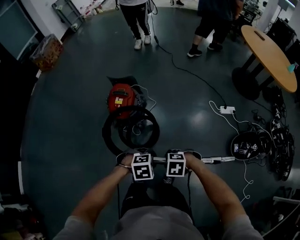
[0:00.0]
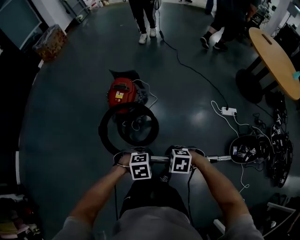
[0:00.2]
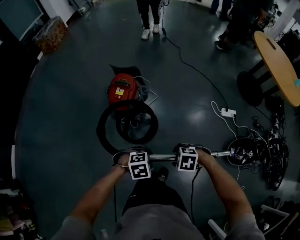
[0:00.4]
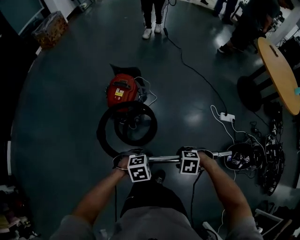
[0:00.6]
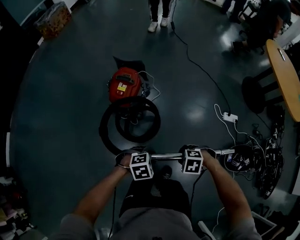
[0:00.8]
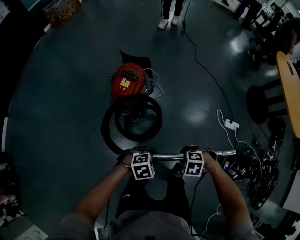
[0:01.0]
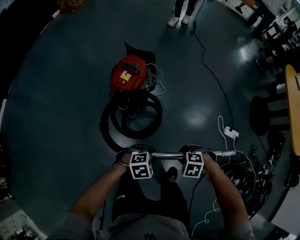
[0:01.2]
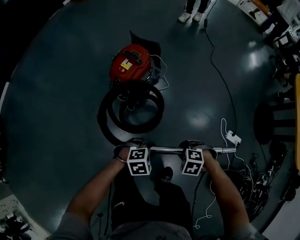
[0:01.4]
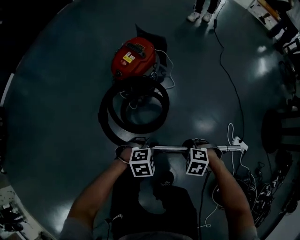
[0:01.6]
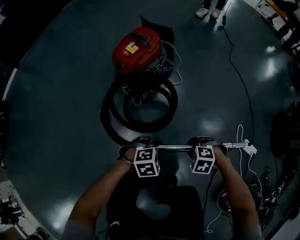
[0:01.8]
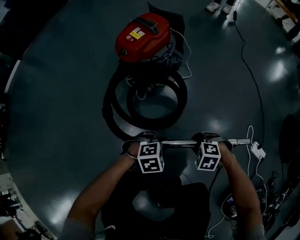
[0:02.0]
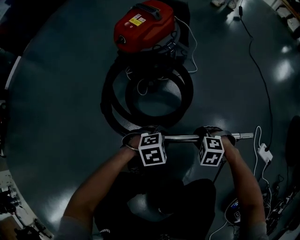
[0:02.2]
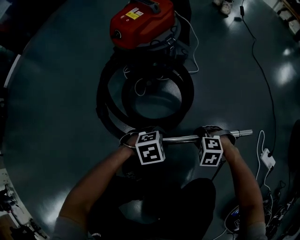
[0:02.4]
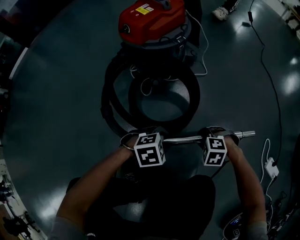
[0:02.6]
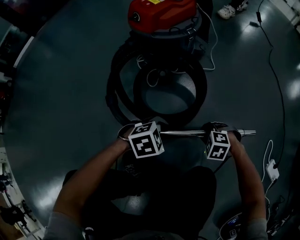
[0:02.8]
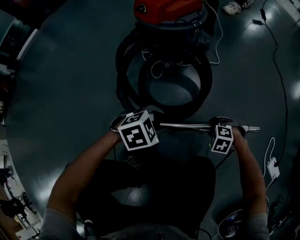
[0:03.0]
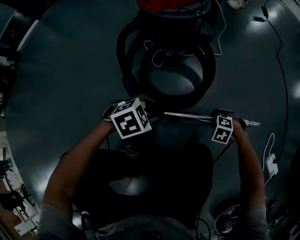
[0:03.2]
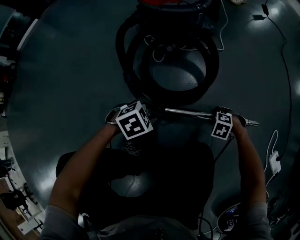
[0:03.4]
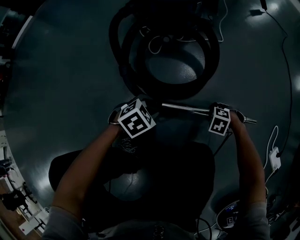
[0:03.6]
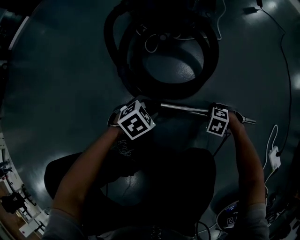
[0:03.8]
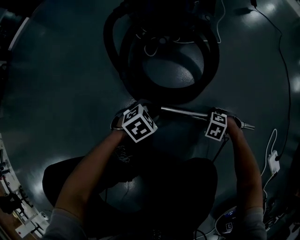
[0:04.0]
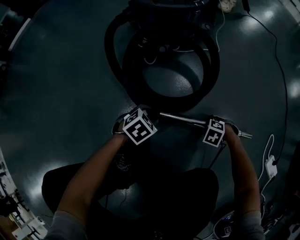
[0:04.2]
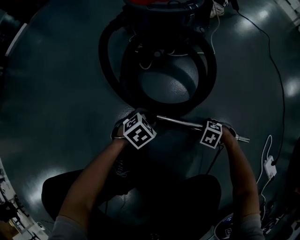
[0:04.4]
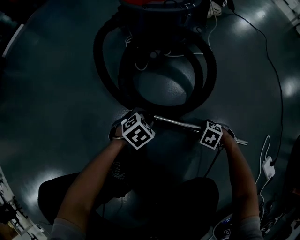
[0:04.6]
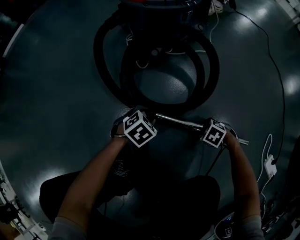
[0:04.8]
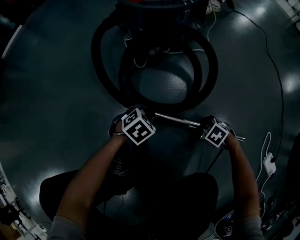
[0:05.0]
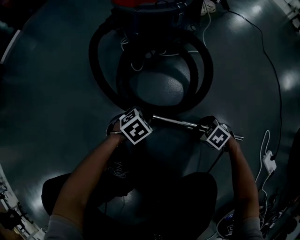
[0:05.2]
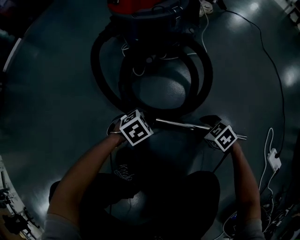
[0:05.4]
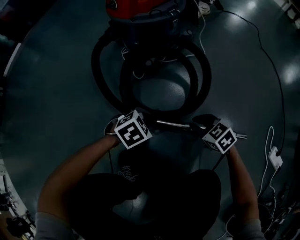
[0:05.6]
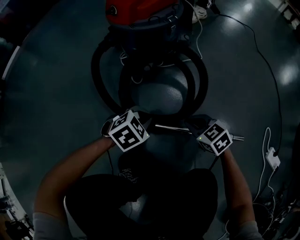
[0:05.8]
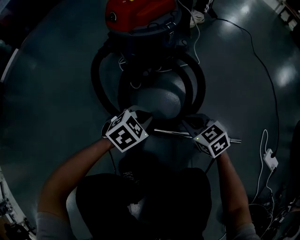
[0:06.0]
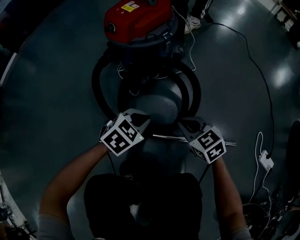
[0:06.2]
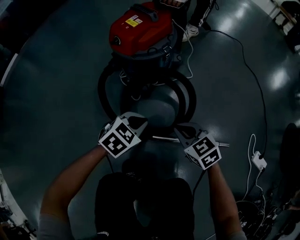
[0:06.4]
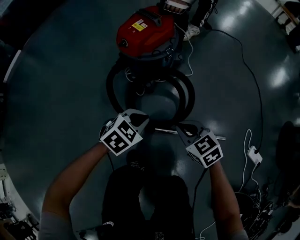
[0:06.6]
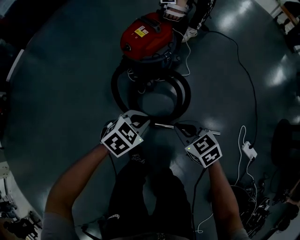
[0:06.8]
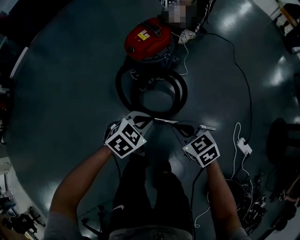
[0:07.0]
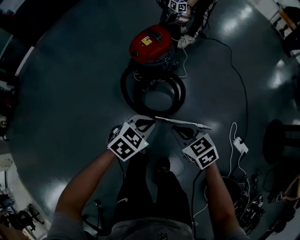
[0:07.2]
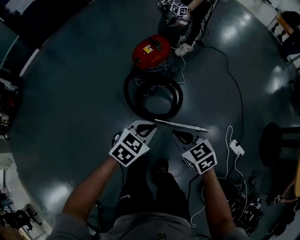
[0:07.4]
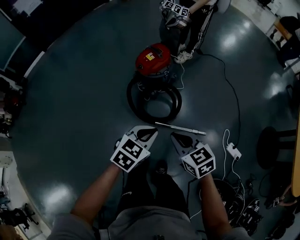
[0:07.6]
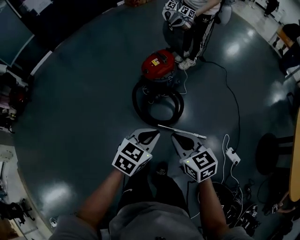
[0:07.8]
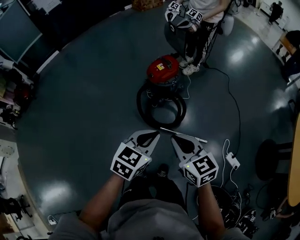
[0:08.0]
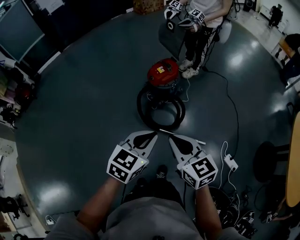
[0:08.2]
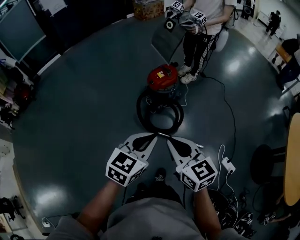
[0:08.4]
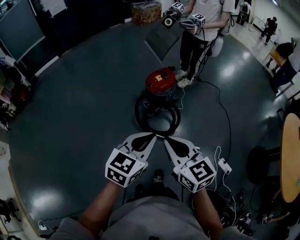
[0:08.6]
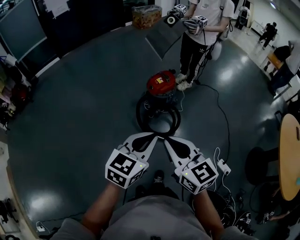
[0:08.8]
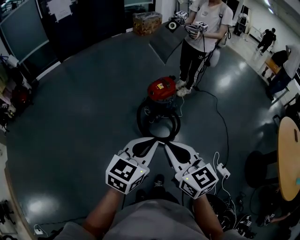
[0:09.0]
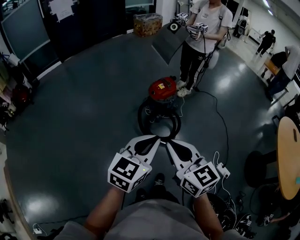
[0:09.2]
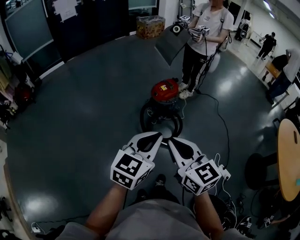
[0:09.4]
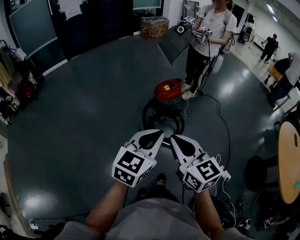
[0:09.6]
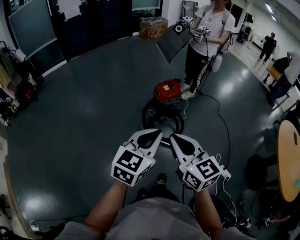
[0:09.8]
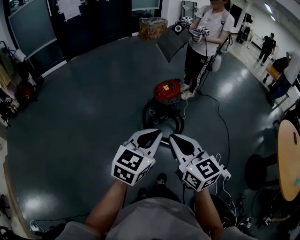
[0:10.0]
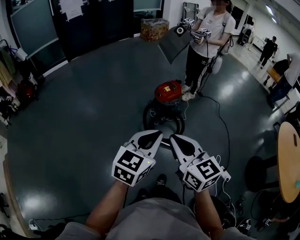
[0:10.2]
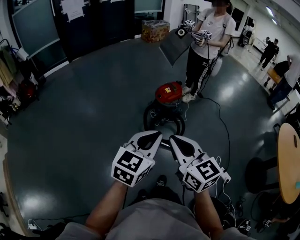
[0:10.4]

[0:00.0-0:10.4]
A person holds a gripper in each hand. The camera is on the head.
0:00.0 to 0:01.4: The right gripper ends up some 25 cm from where it was, and turns by about 20 degrees. Meanwhile the left gripper heads downward, covering about 15 cm, and turns by approximately 30 degrees.
0:01.4 to 0:03.0: The two grippers go approximately 35 cm downward. The left gripper turns by about 30 degrees, while the right gripper rotates about 20 degrees.
0:03.0 to 0:04.4: Both grippers move downward, about 15 cm. The left gripper changes its angle by roughly 20 degrees.
0:04.4 to 0:06.0: The two grippers go some 15 cm upward. The left gripper closes its fingers, while the right gripper angles its fingers upward, by about 40 degrees.
0:06.0 to 0:07.4: Both grippers move upward, approximately 50 cm.
0:07.4 to 0:09.0: Both grippers travel together upward and backward, some 40 cm. The right gripper changes its angle by approximately 30 degrees. The left gripper turns by roughly 40 degrees.
0:09.0 to 0:10.4: The right gripper ends up approximately 5 cm from where it was. The left gripper changes place by about 5 cm.

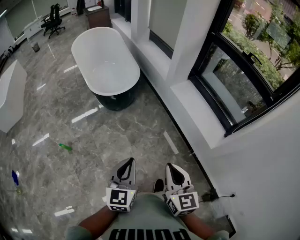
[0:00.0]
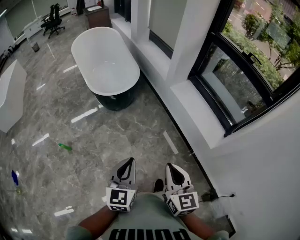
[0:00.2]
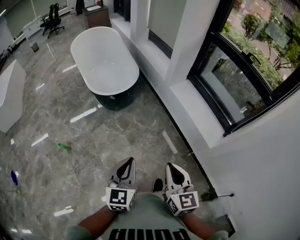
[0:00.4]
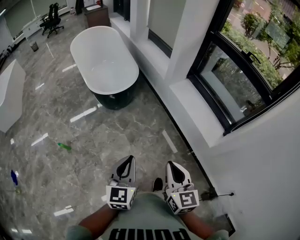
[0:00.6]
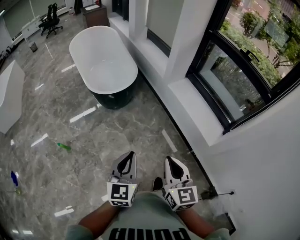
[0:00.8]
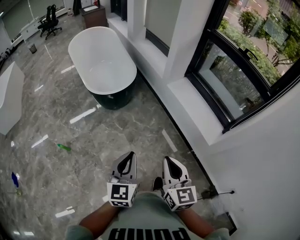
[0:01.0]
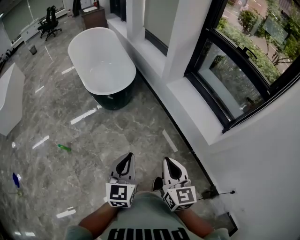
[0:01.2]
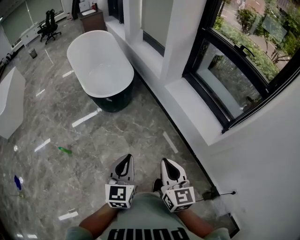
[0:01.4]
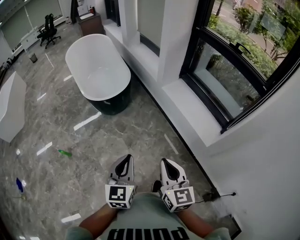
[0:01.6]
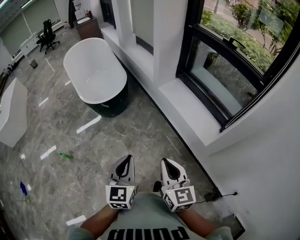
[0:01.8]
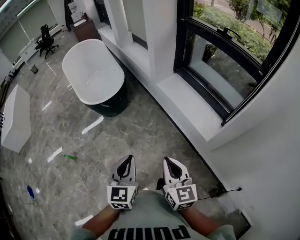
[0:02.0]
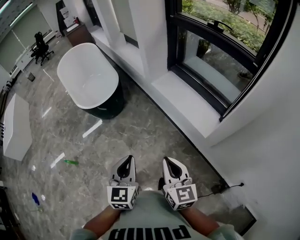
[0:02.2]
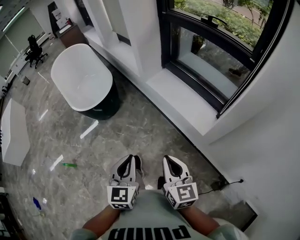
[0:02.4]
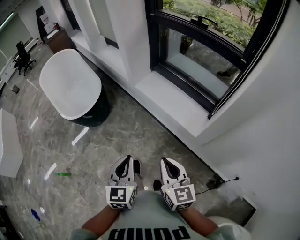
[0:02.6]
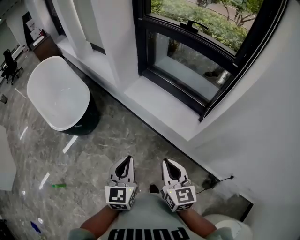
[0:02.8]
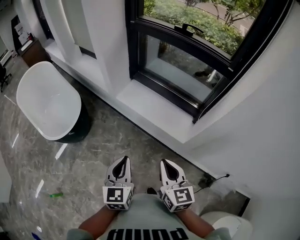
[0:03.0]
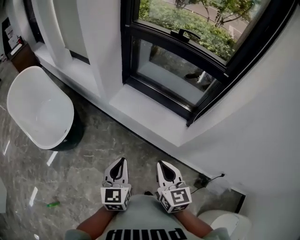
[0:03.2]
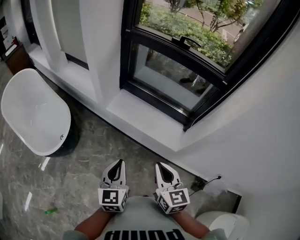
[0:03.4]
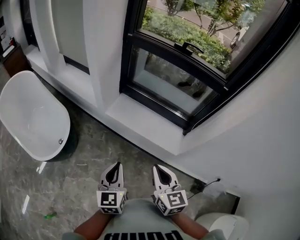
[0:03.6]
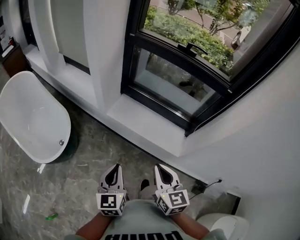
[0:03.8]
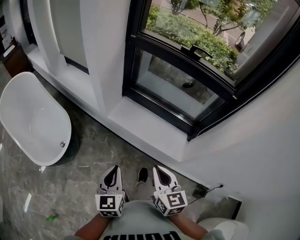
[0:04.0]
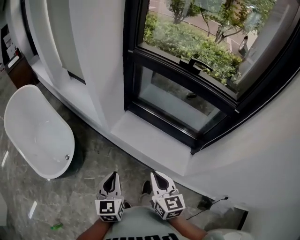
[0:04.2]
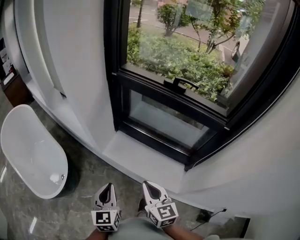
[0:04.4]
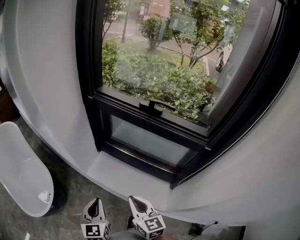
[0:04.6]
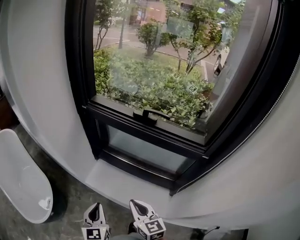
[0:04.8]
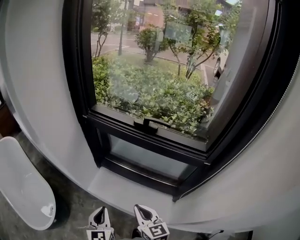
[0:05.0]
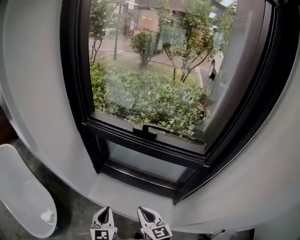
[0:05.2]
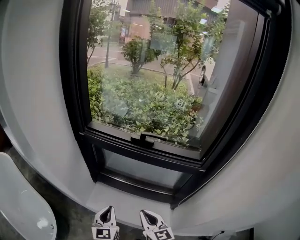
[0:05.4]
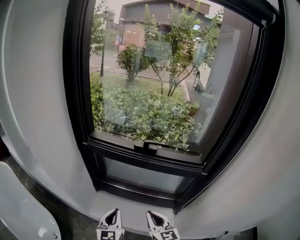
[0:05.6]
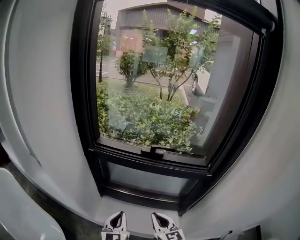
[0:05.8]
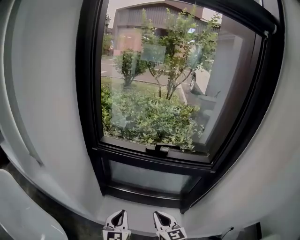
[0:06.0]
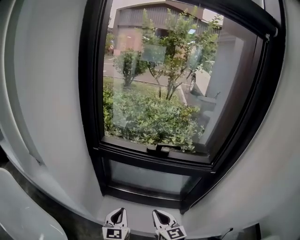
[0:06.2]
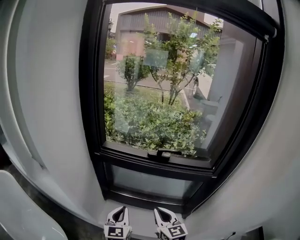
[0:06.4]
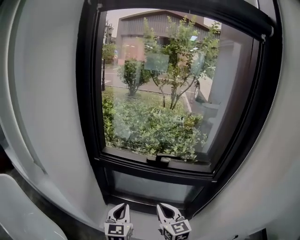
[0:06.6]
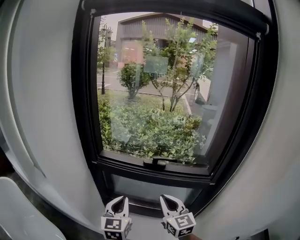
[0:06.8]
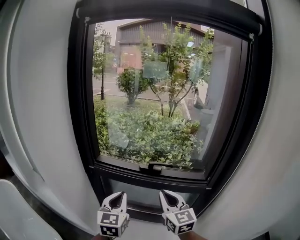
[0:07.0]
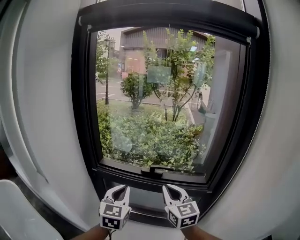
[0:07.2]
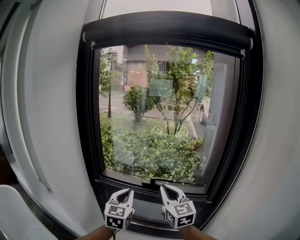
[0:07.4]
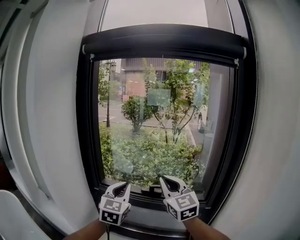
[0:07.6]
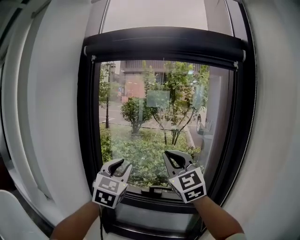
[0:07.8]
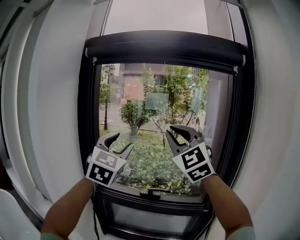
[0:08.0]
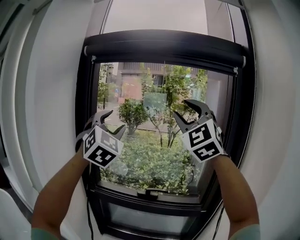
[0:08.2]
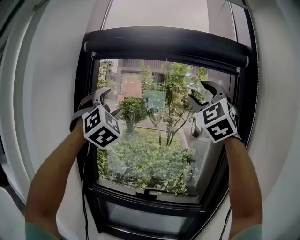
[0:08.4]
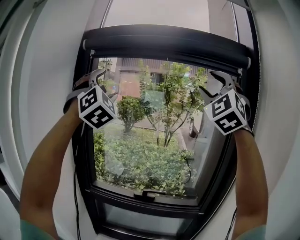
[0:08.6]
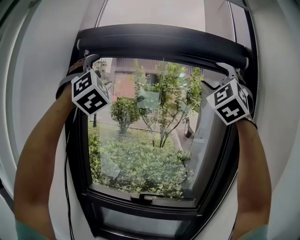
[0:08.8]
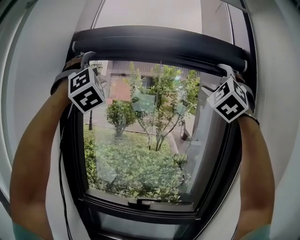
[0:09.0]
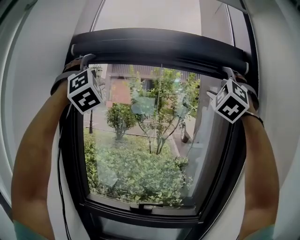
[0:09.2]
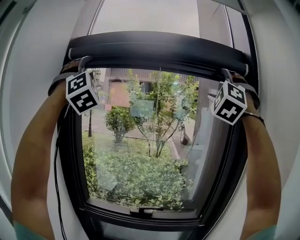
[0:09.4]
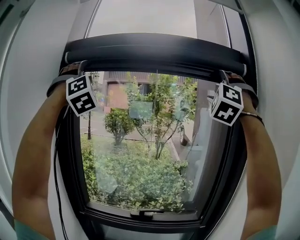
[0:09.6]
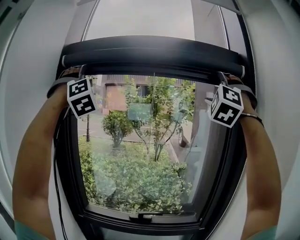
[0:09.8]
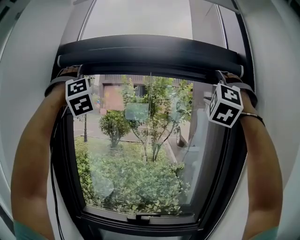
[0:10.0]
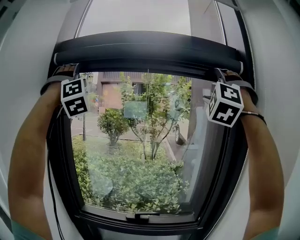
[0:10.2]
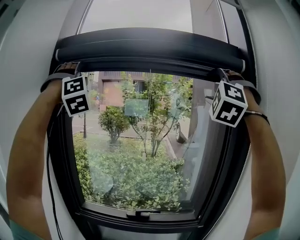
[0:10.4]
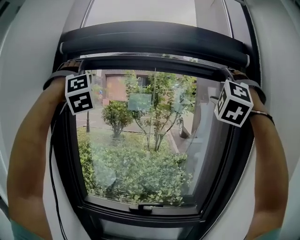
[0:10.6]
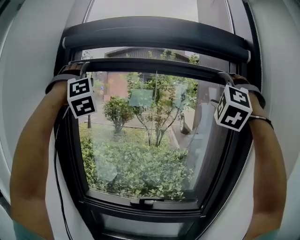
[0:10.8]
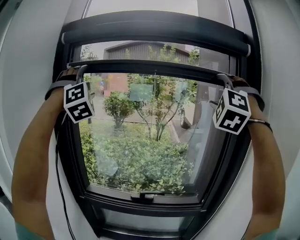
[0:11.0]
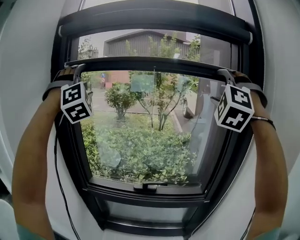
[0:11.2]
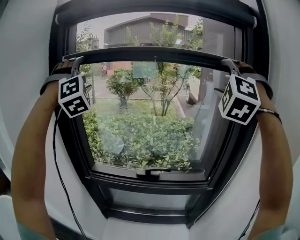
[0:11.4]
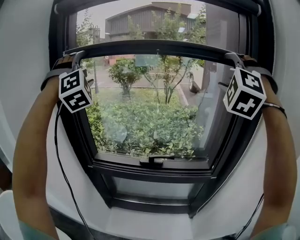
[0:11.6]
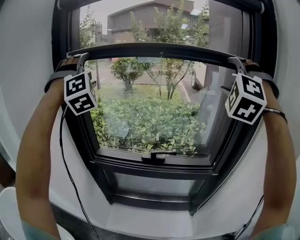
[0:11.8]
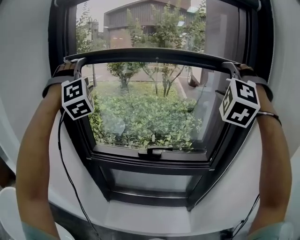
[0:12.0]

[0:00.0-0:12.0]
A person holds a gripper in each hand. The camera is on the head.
0:00.0 to 0:01.6: The two grippers go approximately 5 cm to the right.
0:01.6 to 0:03.0: The left gripper moves forward and to the right, about 25 cm, and rotates roughly 20 degrees. The right gripper shifts about 20 cm to the right and forward, and swivels some 20 degrees.
0:03.0 to 0:04.4: Both grippers travel together forward, about 25 cm.
0:04.4 to 0:06.0: Both grippers move forward, some 15 cm. The left gripper changes its angle by some 20 degrees.
0:06.0 to 0:07.6: Both grippers travel together upward and forward, roughly 35 cm. The left gripper swivels roughly 30 degrees. Meanwhile the right gripper swivels about 30 degrees.
0:07.6 to 0:09.0: The two grippers go some 40 cm upward. The right gripper twists roughly 70 degrees counterclockwise, seen from behind, and opens its fingers. The left gripper twists approximately 60 degrees clockwise, seen from behind, and opens.
0:09.0 to 0:10.4: The right gripper rotates about 20 degrees; the left gripper shifts about 10 cm forward, and changes its angle by about 20 degrees.
0:10.4 to 0:12.0: Both grippers travel together downward, approximately 25 cm.

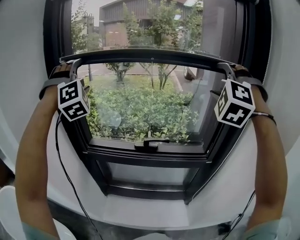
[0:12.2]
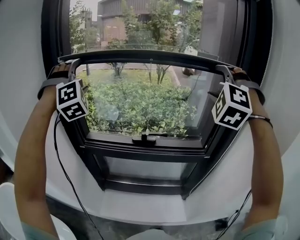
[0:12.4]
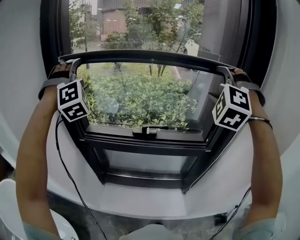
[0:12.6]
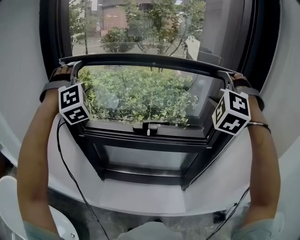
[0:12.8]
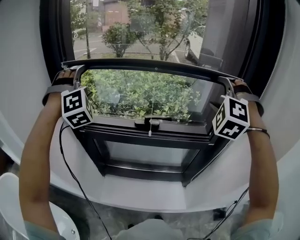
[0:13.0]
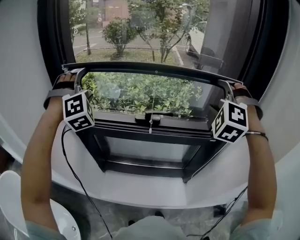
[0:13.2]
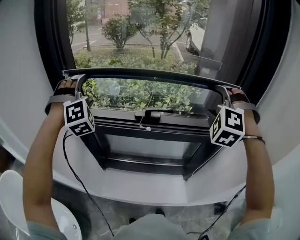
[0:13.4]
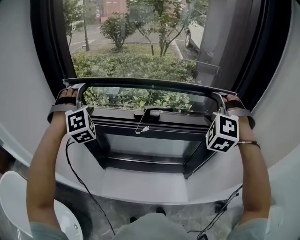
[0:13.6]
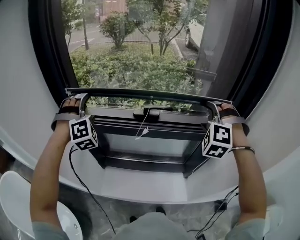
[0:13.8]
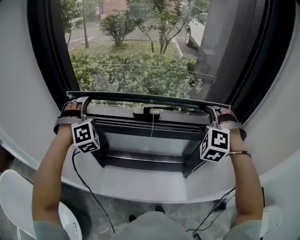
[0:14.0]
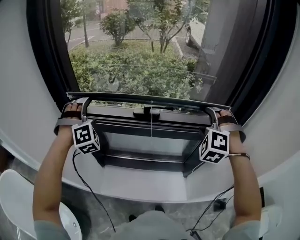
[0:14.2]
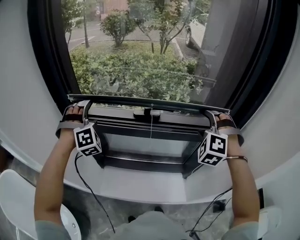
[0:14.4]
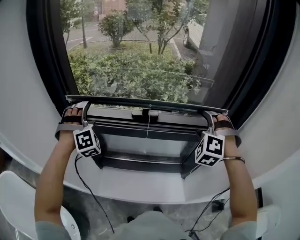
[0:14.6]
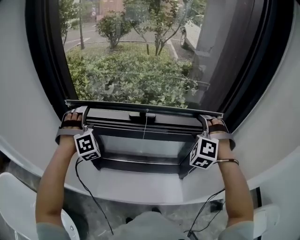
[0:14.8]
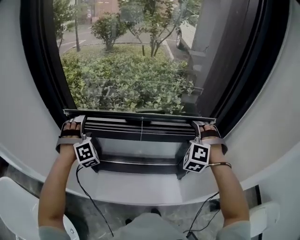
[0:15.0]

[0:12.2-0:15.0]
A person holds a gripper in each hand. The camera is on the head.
0:12.2 to 0:13.6: The two grippers go about 25 cm downward.
0:13.6 to 0:15.0: The grippers both shift downward by roughly 10 cm.
